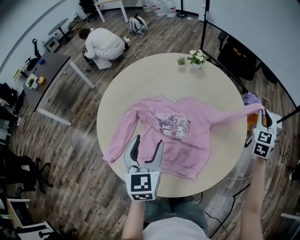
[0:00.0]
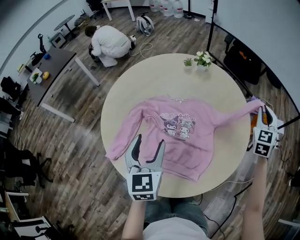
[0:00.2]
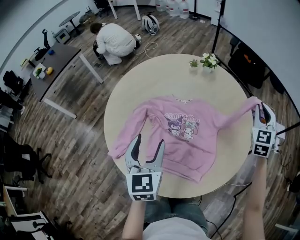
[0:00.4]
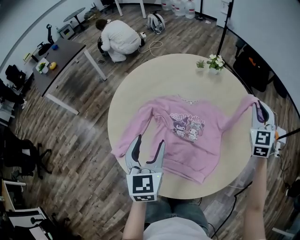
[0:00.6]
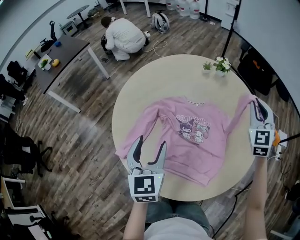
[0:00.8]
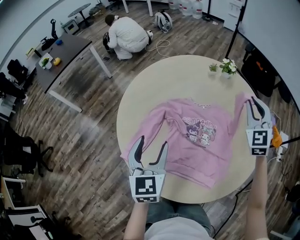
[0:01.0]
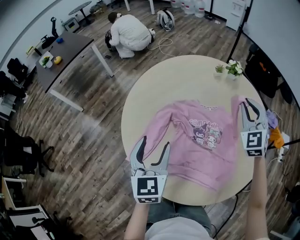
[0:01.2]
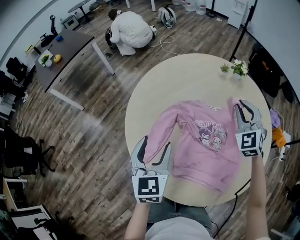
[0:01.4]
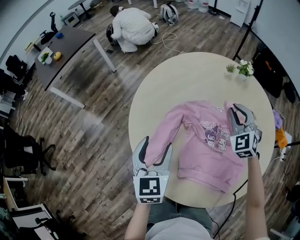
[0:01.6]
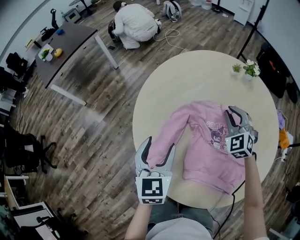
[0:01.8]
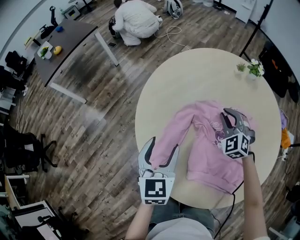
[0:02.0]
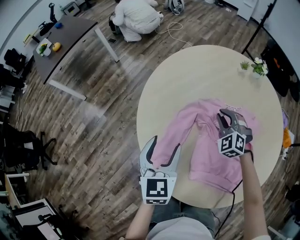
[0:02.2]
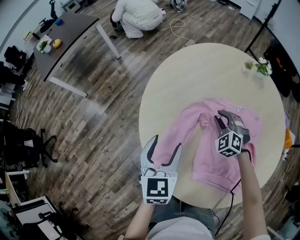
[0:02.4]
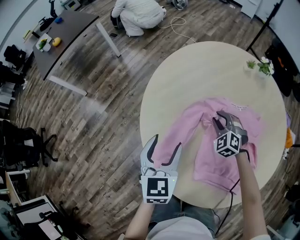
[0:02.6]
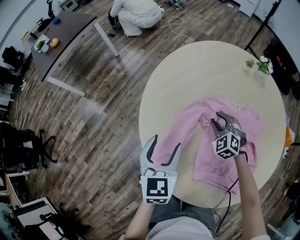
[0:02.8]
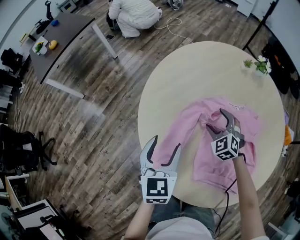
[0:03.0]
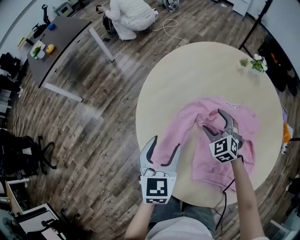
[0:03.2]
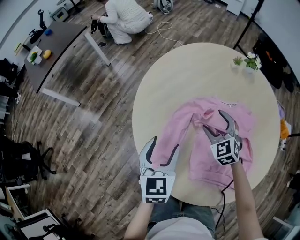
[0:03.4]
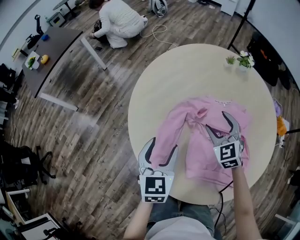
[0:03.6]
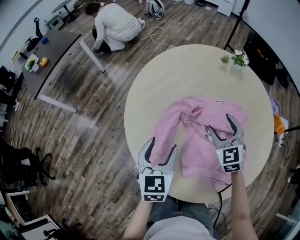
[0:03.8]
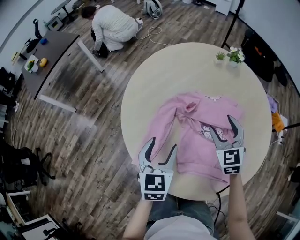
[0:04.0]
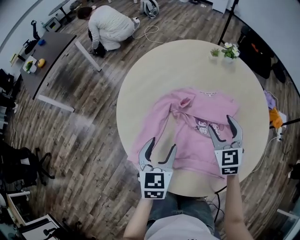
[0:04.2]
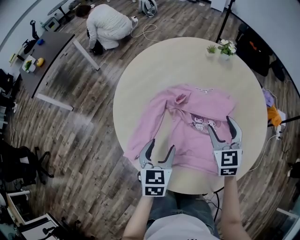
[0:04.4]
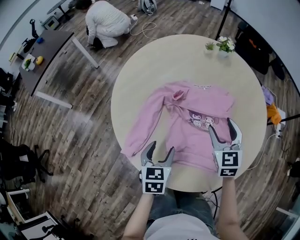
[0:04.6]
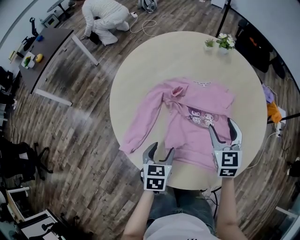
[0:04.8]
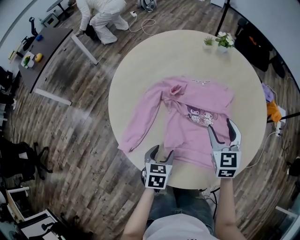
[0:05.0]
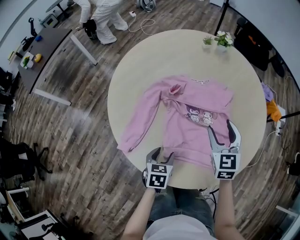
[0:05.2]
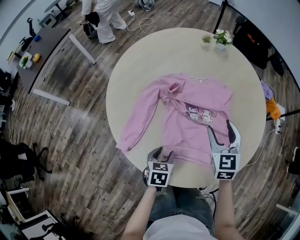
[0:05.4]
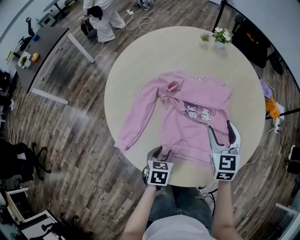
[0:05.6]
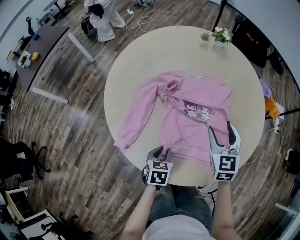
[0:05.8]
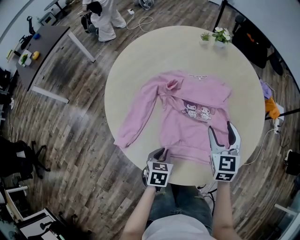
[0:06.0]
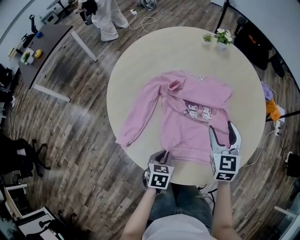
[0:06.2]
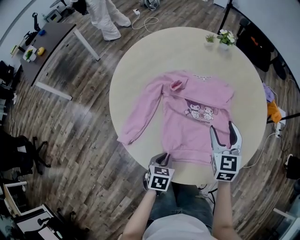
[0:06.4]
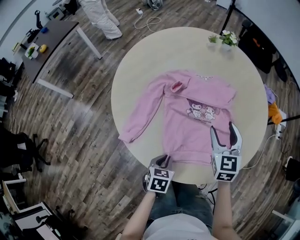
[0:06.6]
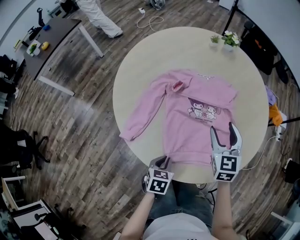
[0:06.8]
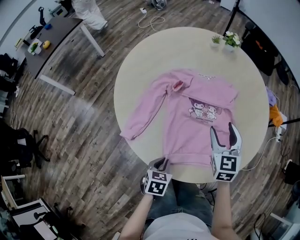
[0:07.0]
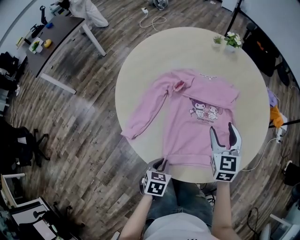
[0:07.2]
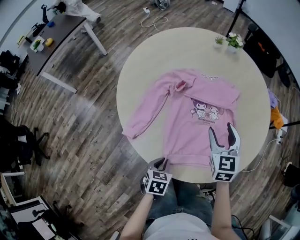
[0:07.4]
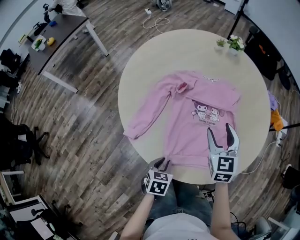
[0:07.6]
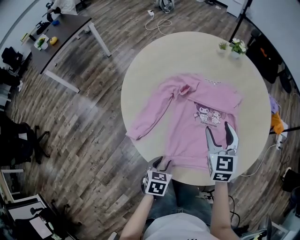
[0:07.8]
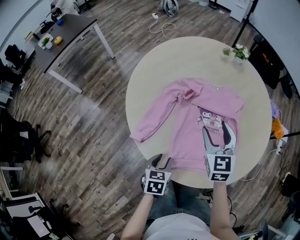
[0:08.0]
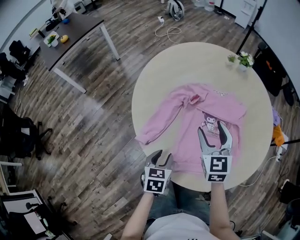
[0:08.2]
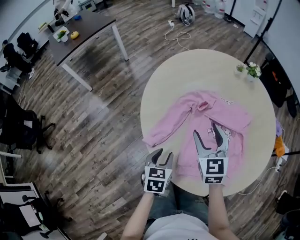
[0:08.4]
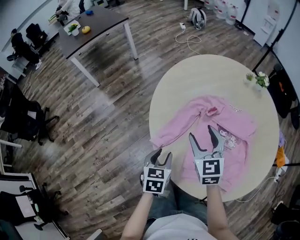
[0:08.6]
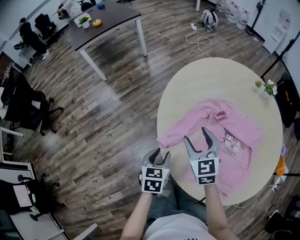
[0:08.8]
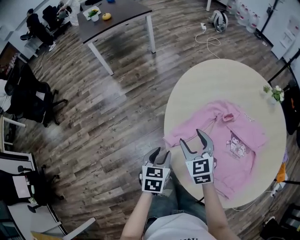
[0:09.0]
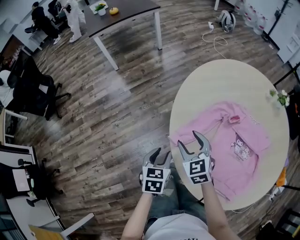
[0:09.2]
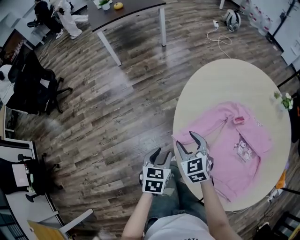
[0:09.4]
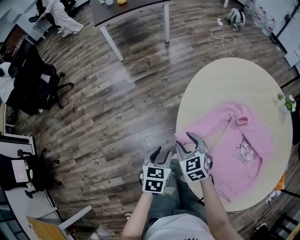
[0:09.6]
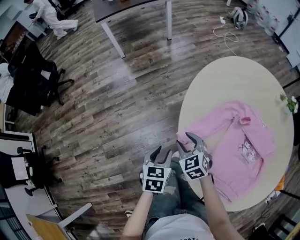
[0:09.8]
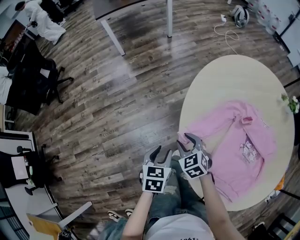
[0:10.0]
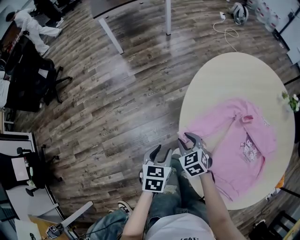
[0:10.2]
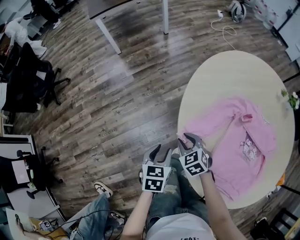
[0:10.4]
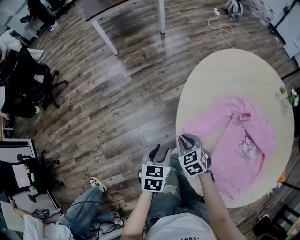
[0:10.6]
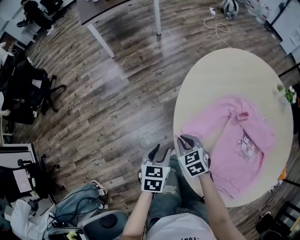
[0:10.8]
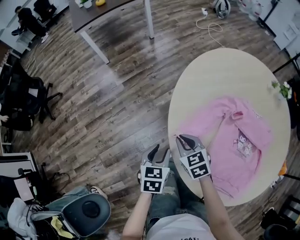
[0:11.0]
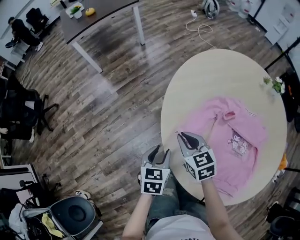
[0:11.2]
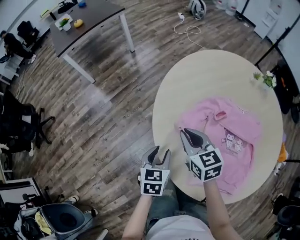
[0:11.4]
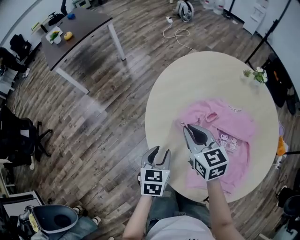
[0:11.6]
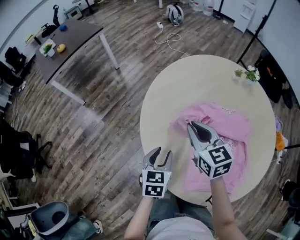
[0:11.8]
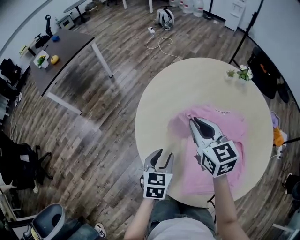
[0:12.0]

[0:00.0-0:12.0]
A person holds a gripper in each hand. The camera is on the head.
0:00.0 to 0:01.6: The right gripper moves to the left, about 40 cm, and turns by roughly 50 degrees. The left gripper is displaced to the left by about 20 cm.
0:01.6 to 0:03.0: The right gripper shifts some 20 cm downward and to the left, and opens its fingers. The left gripper shifts some 5 cm downward.
0:03.0 to 0:04.4: The right gripper heads to the right, upward and backward, covering about 20 cm, and turns by roughly 40 degrees. The left gripper shifts roughly 15 cm to the right and backward.
0:04.4 to 0:06.0: The left gripper shifts roughly 15 cm downward, backward and to the right, changes its angle by roughly 20 degrees, and closes its fingers; the right gripper travels to the right and backward by roughly 10 cm.
0:06.0 to 0:07.6: The left gripper goes some 5 cm backward.
0:07.6 to 0:09.0: The left gripper moves approximately 20 cm, and turns by about 30 degrees. Meanwhile the right gripper changes place by some 30 cm, and rotates some 40 degrees.
0:09.0 to 0:10.4: The right gripper shifts about 15 cm downward and to the left, swivels approximately 30 degrees, and closes. Meanwhile the left gripper heads to the left, covering some 5 cm.
0:10.4 to 0:12.0: The left gripper changes place by some 20 cm, and rotates some 30 degrees. Meanwhile the right gripper changes place by approximately 35 cm, and tilts its fingers some 30 degrees upward.

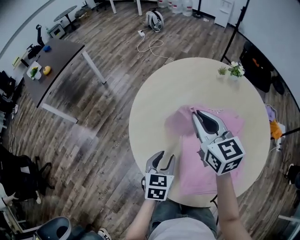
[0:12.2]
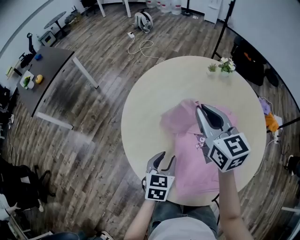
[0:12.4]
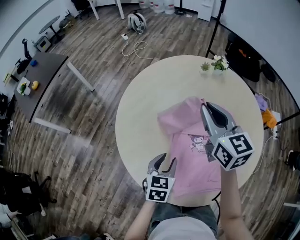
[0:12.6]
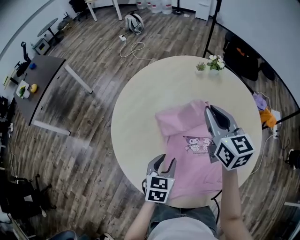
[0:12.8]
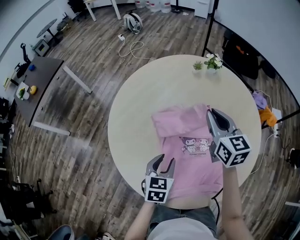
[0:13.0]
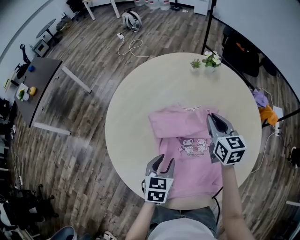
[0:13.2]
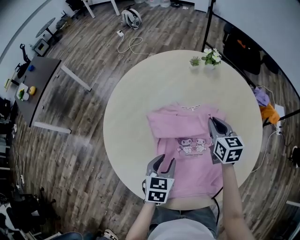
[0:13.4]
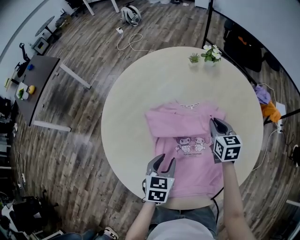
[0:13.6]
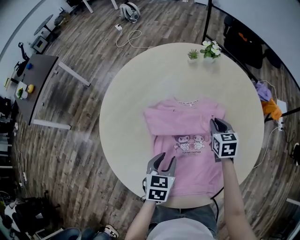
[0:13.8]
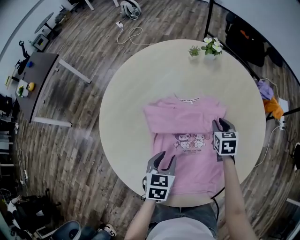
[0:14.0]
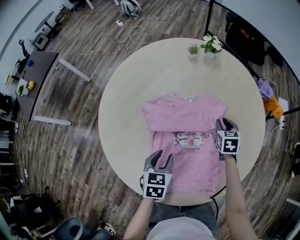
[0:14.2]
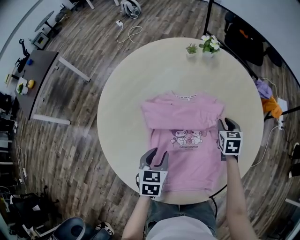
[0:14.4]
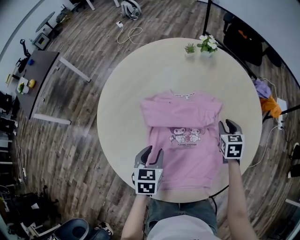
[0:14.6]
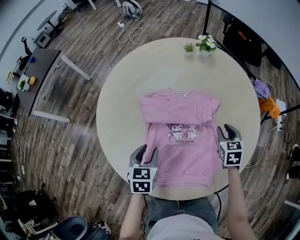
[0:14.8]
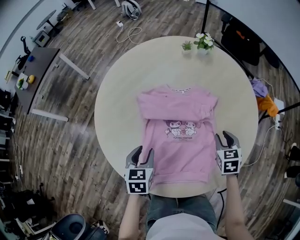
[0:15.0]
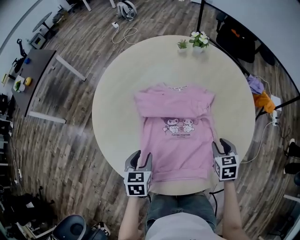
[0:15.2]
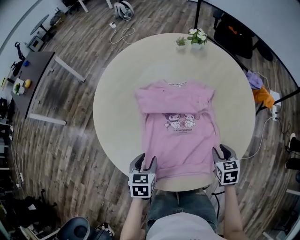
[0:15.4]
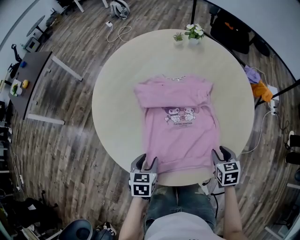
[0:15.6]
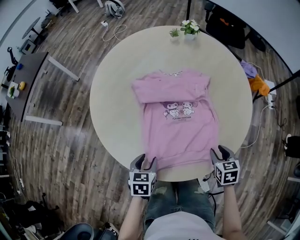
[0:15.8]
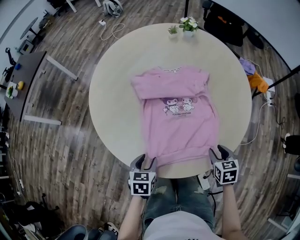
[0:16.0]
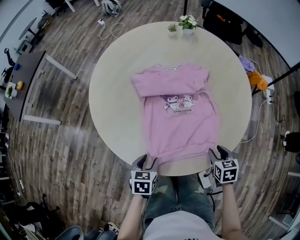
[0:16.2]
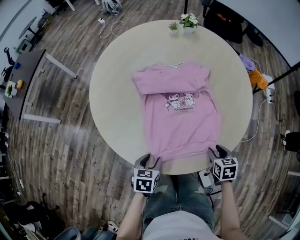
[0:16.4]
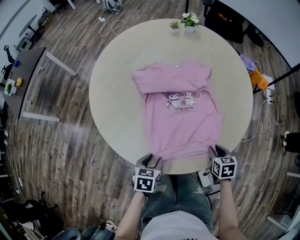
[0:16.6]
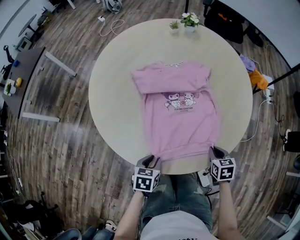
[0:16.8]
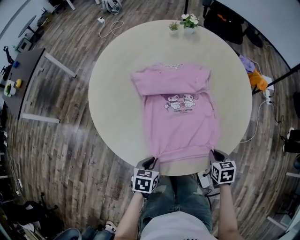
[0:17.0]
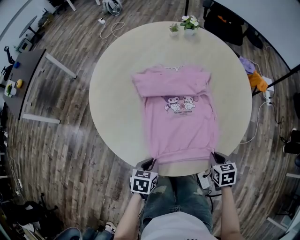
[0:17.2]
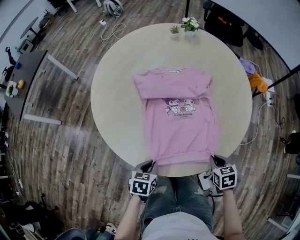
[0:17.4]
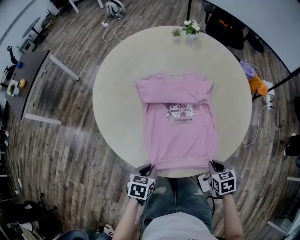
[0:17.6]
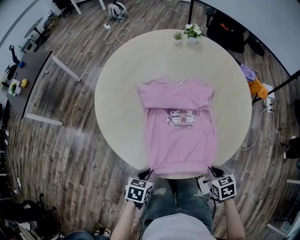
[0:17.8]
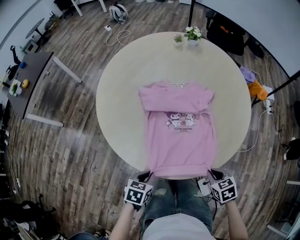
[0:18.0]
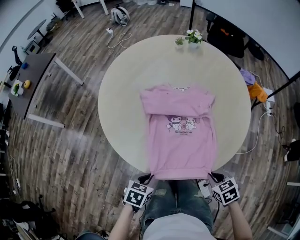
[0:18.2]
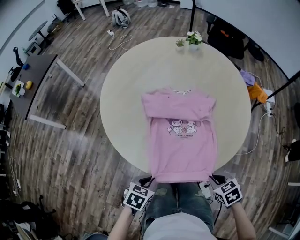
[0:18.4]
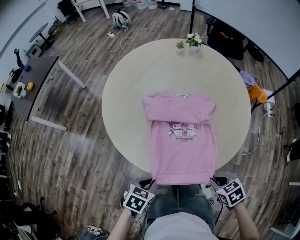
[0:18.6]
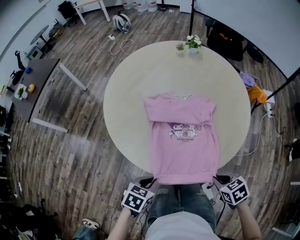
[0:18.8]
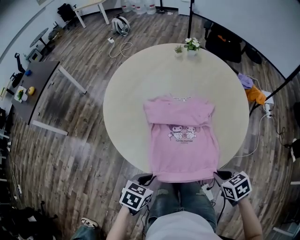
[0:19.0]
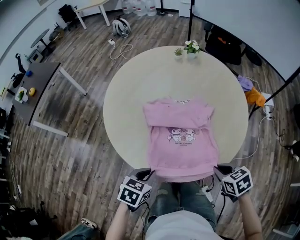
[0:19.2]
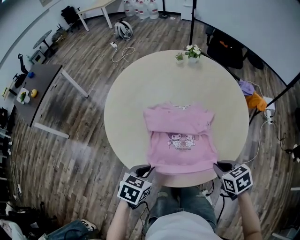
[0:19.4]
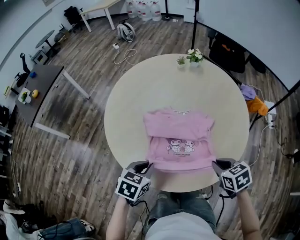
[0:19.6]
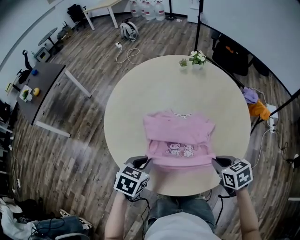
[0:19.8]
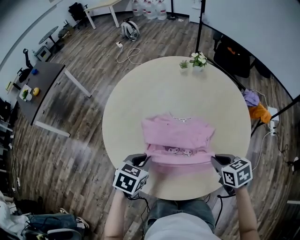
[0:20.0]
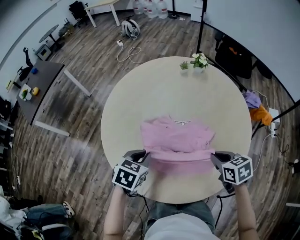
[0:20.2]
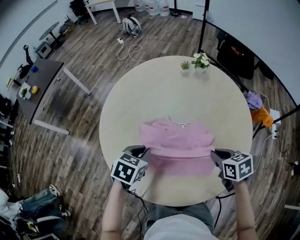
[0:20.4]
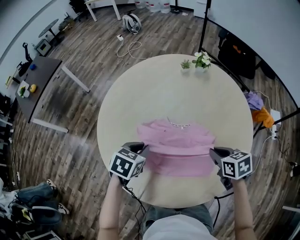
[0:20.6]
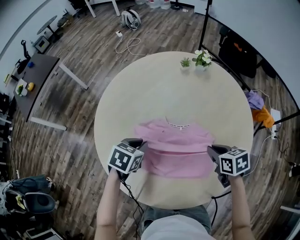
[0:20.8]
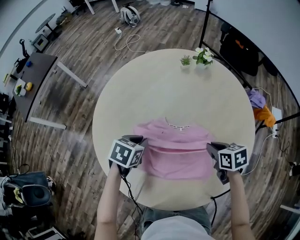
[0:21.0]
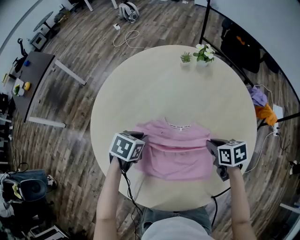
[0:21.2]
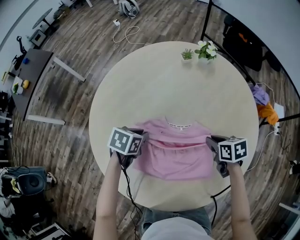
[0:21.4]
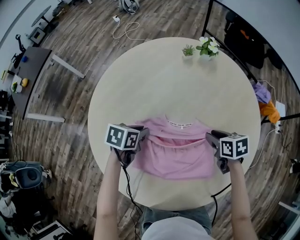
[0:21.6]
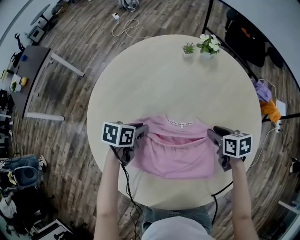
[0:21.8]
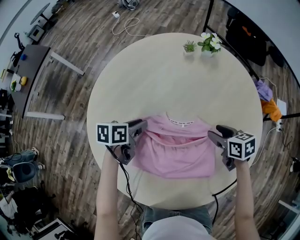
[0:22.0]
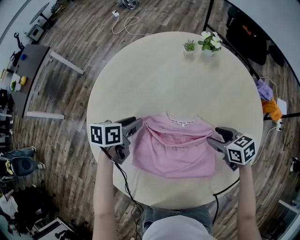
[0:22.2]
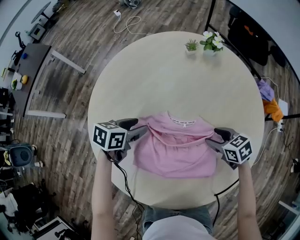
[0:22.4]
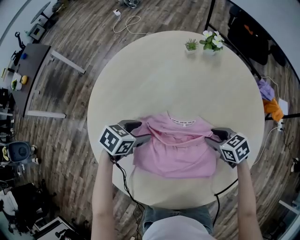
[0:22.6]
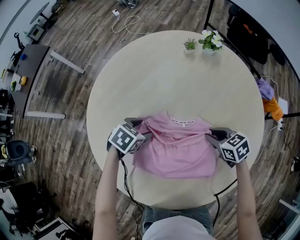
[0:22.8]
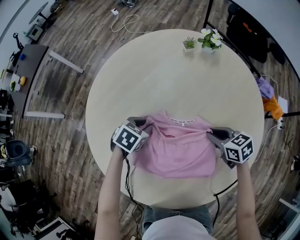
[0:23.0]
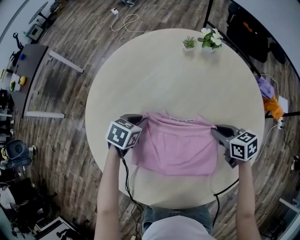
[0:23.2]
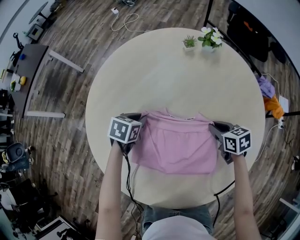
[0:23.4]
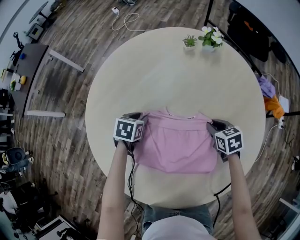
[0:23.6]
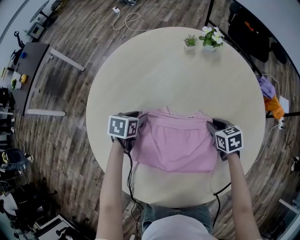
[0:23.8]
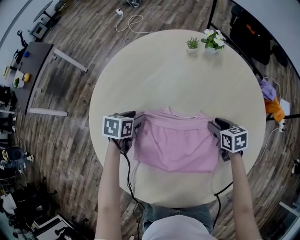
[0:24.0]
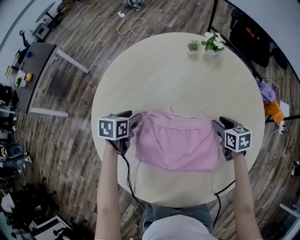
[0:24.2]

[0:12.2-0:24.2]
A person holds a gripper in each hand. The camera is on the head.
0:12.2 to 0:13.8: The left gripper travels to the right by some 15 cm; the right gripper travels to the right and downward by roughly 35 cm, and rotates roughly 30 degrees.
0:13.8 to 0:15.2: The right gripper shifts approximately 20 cm backward and to the right. Meanwhile the left gripper is displaced backward by about 10 cm.
0:15.2 to 0:16.6: The right gripper travels backward by roughly 15 cm; the left gripper heads backward and downward, covering some 15 cm, and changes its angle by roughly 20 degrees.
0:16.6 to 0:18.2: The right gripper goes approximately 10 cm backward and upward, and swivels some 20 degrees. Meanwhile the left gripper heads backward, covering some 5 cm, and closes.
0:18.2 to 0:19.8: Both grippers travel together forward and upward, roughly 20 cm.
0:19.8 to 0:21.2: The two grippers go approximately 20 cm forward.
0:21.2 to 0:22.6: The left gripper opens up, while the right gripper travels downward by about 5 cm, turns by roughly 20 degrees, and opens.
0:22.6 to 0:24.2: The left gripper ends up roughly 10 cm from where it was, swivels about 30 degrees, and closes, then opens again. Meanwhile the right gripper moves approximately 5 cm, swivels roughly 20 degrees, and closes and opens again.
